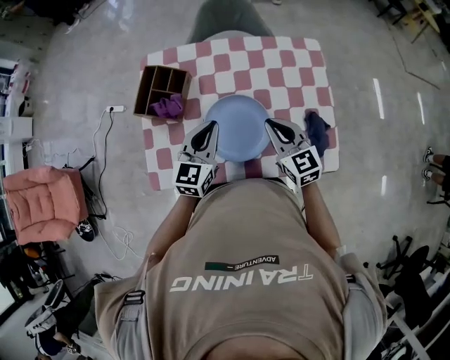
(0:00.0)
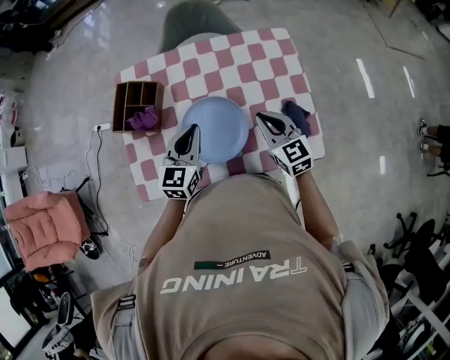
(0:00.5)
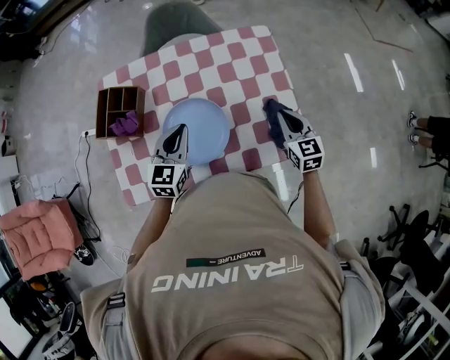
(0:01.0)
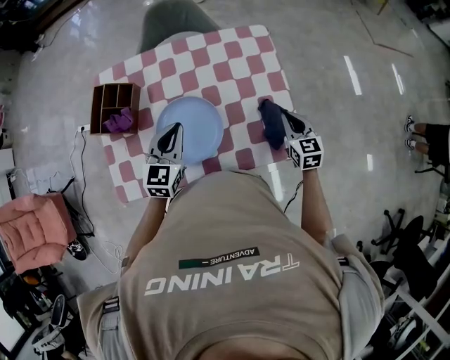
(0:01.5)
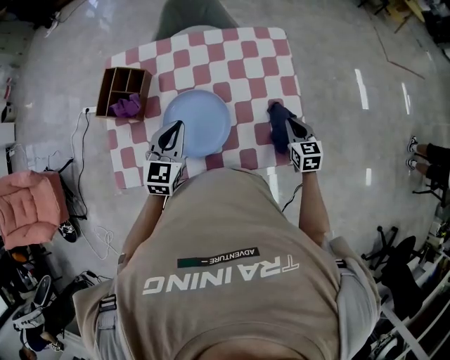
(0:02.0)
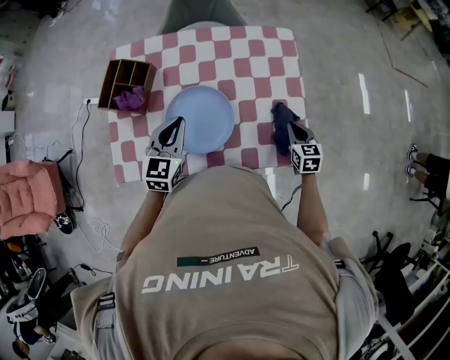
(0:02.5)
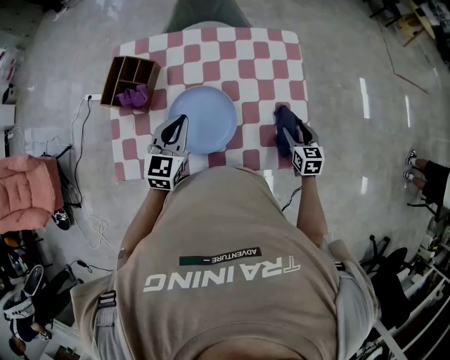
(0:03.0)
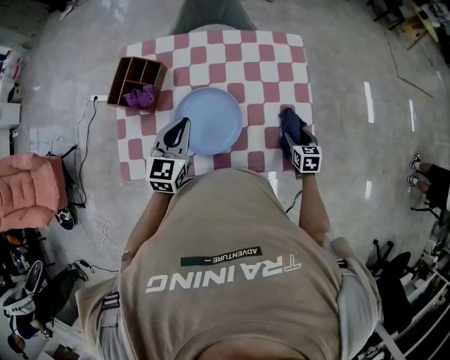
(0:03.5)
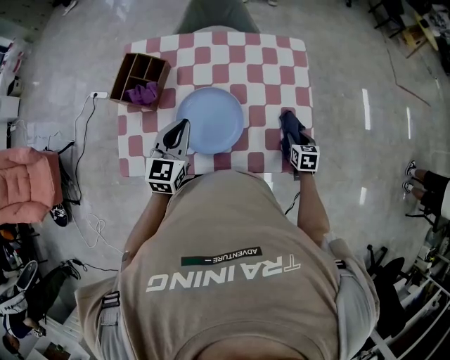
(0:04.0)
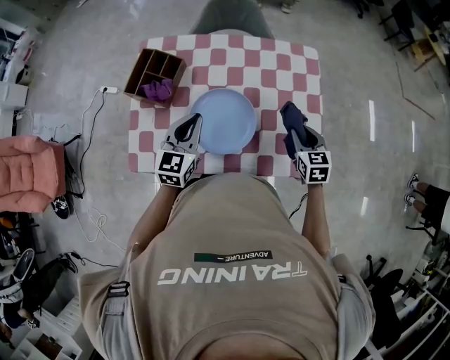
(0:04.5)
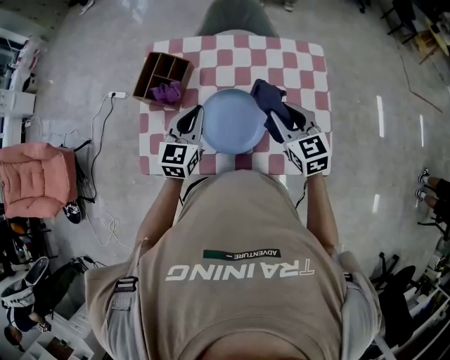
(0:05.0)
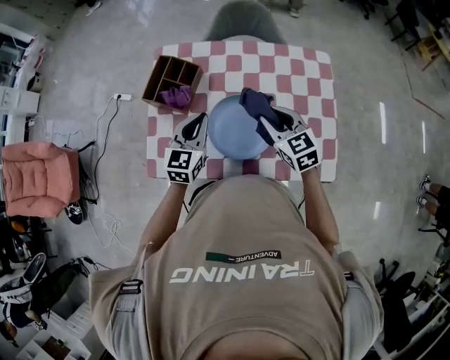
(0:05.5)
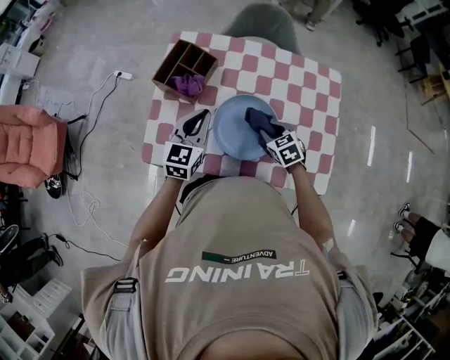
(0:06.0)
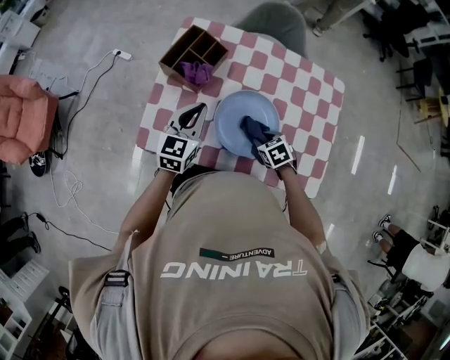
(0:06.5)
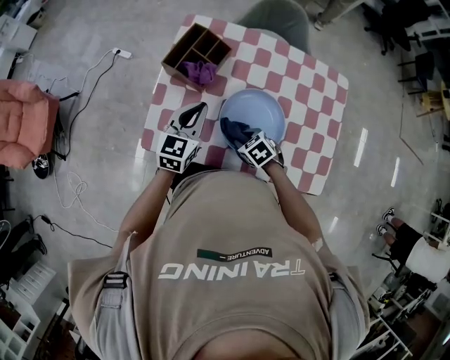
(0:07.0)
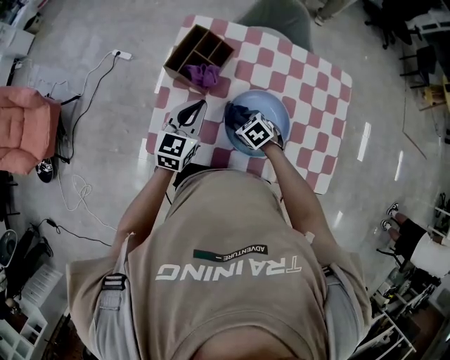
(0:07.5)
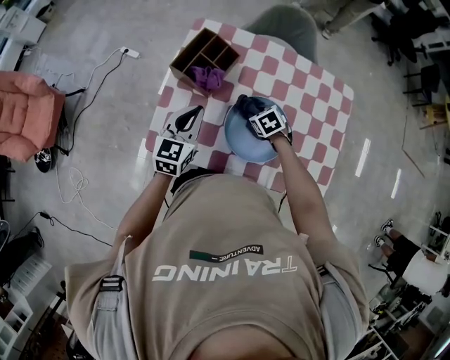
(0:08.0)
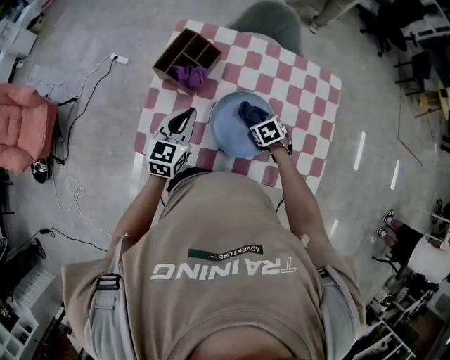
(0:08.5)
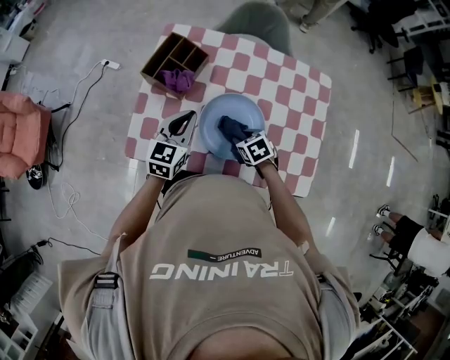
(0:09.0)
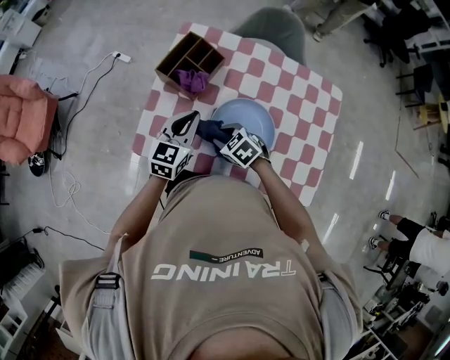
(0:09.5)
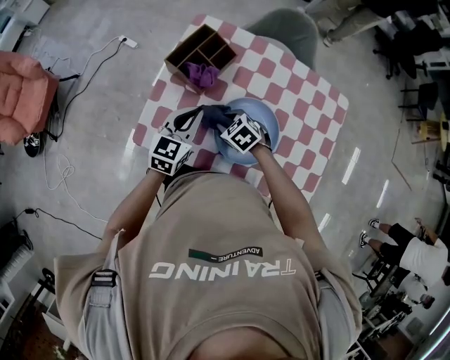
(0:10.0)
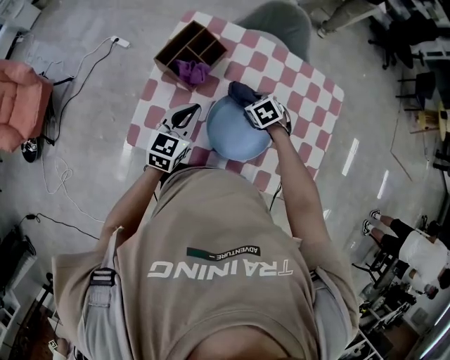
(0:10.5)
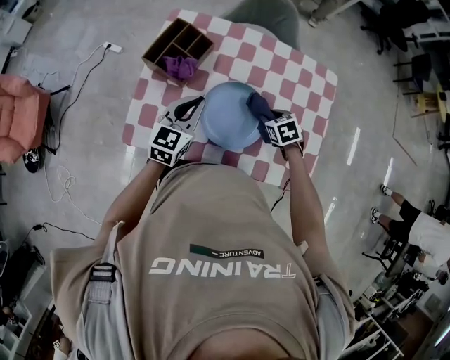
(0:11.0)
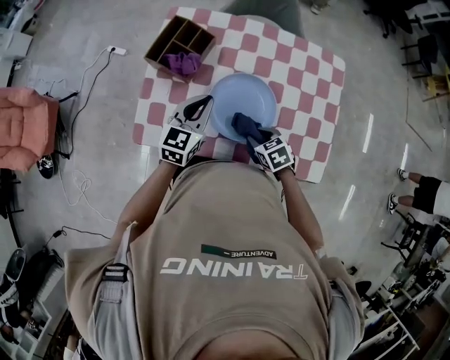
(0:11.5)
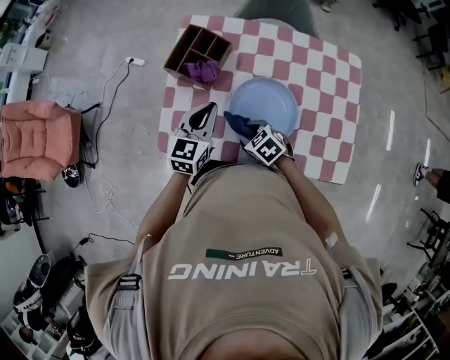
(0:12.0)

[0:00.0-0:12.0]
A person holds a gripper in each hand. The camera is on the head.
0:00.0 to 0:02.0: The right gripper goes about 25 cm to the right and downward, and rotates approximately 30 degrees, while the left gripper ends up approximately 5 cm from where it was.
0:02.0 to 0:04.0: The right gripper travels downward by some 5 cm, and opens.
0:04.0 to 0:06.0: The left gripper shifts some 10 cm to the left; the right gripper shifts roughly 25 cm to the left, and turns by some 40 degrees.
0:06.0 to 0:08.0: The right gripper shifts roughly 10 cm forward, to the left and downward; the left gripper goes about 5 cm to the left.
0:08.0 to 0:10.0: The right gripper goes approximately 10 cm to the left, and rotates approximately 20 degrees.
0:10.0 to 0:12.0: The right gripper is displaced backward by roughly 10 cm, and moves approximately 20 cm to the right and comes back.

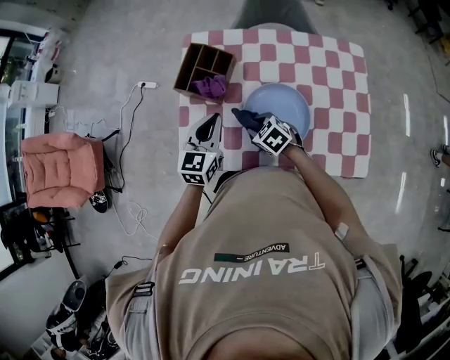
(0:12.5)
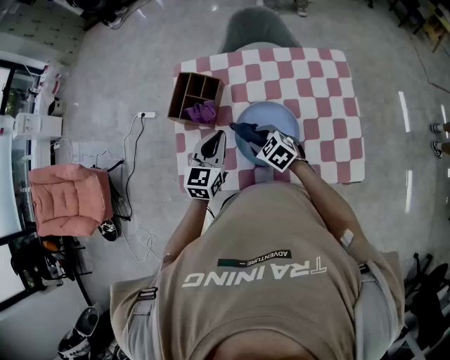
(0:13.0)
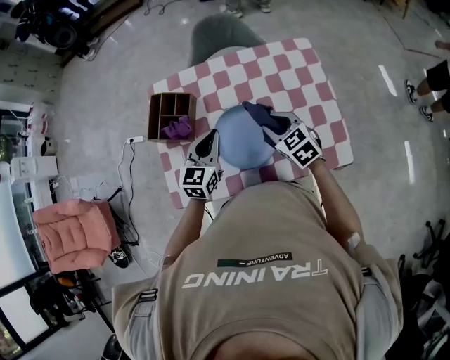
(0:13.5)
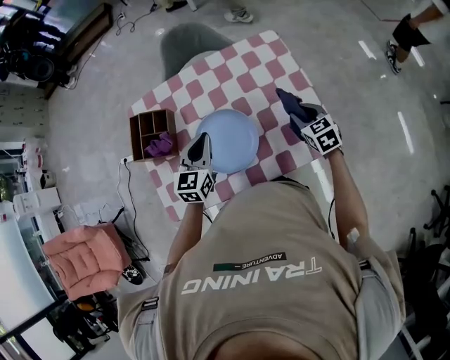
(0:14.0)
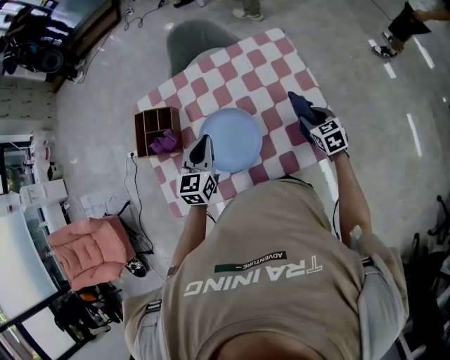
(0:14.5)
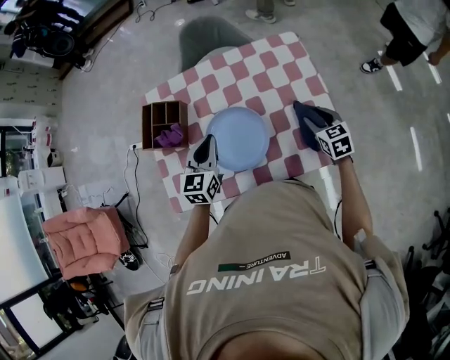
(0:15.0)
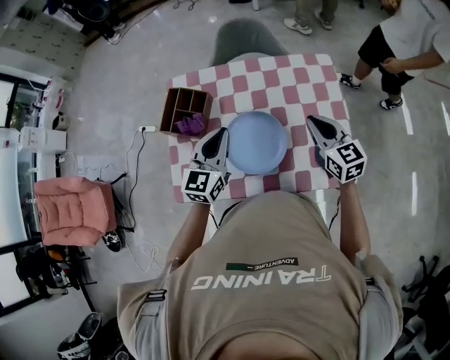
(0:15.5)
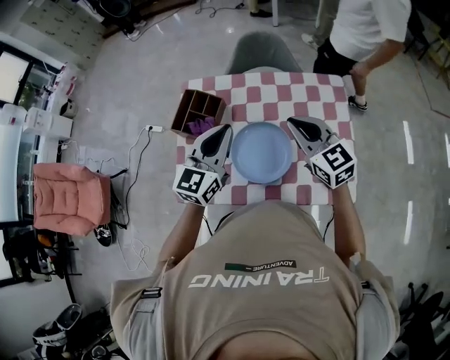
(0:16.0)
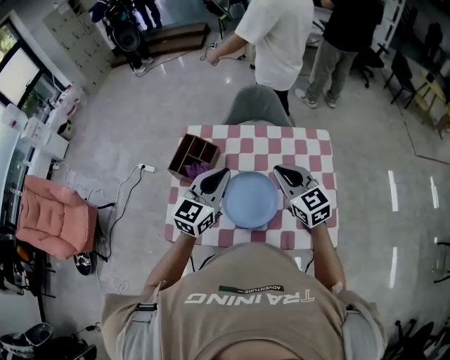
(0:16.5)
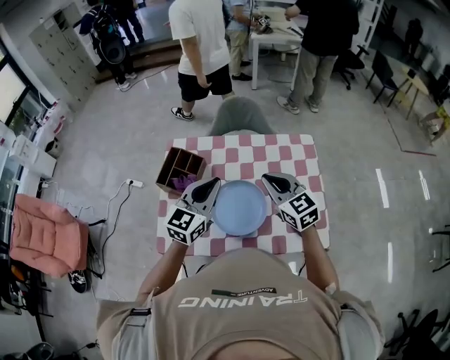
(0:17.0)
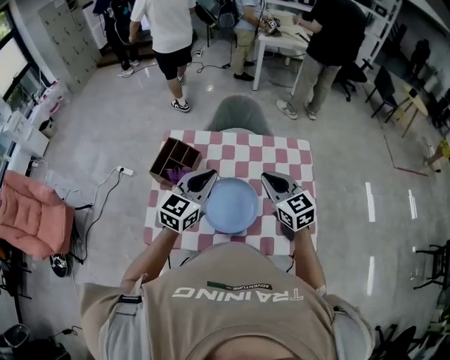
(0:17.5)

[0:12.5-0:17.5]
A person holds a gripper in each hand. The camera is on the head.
0:12.5 to 0:15.0: The right gripper shifts by roughly 40 cm, and swivels approximately 50 degrees. The left gripper ends up about 15 cm from where it was.
0:15.0 to 0:17.5: The right gripper heads to the left and upward, covering about 30 cm, swivels about 30 degrees, and closes up, while the left gripper heads upward, covering roughly 15 cm.

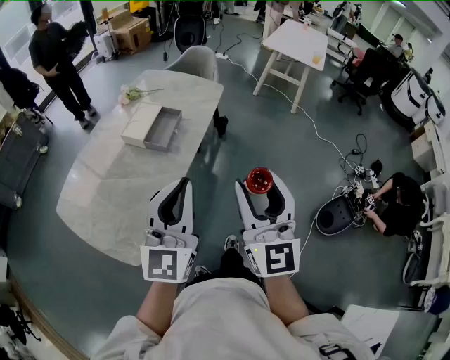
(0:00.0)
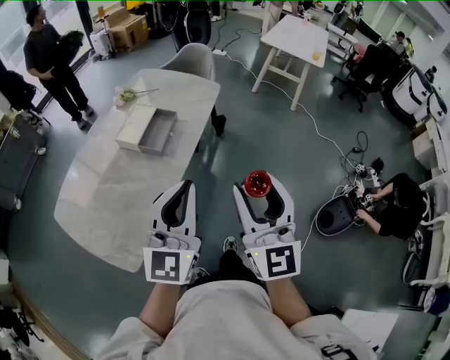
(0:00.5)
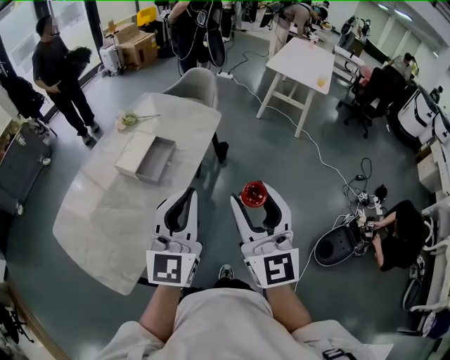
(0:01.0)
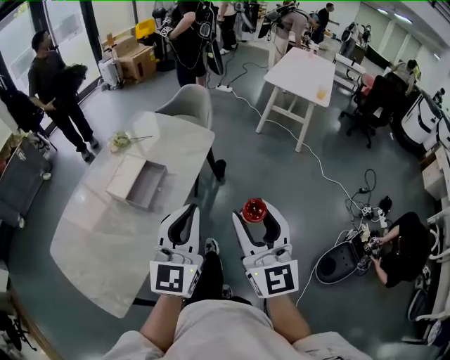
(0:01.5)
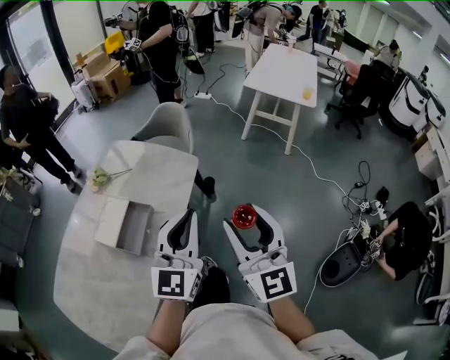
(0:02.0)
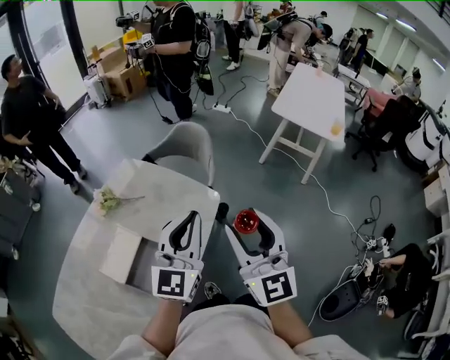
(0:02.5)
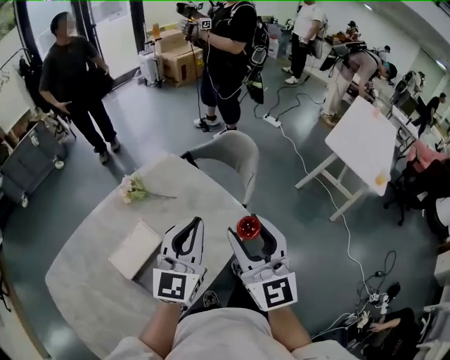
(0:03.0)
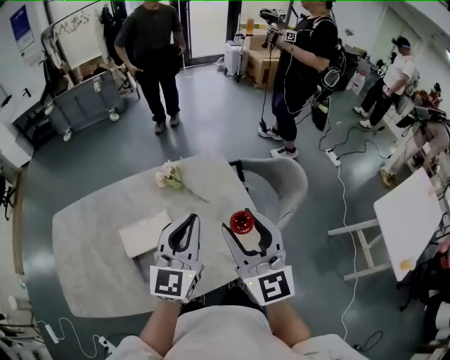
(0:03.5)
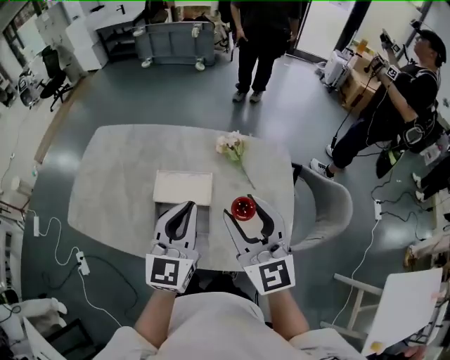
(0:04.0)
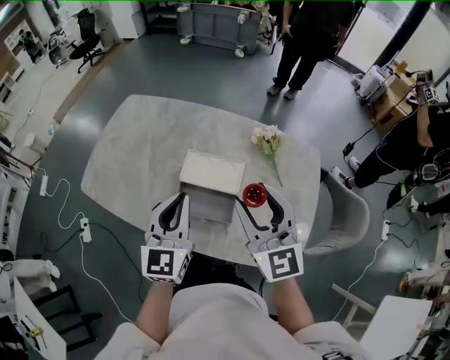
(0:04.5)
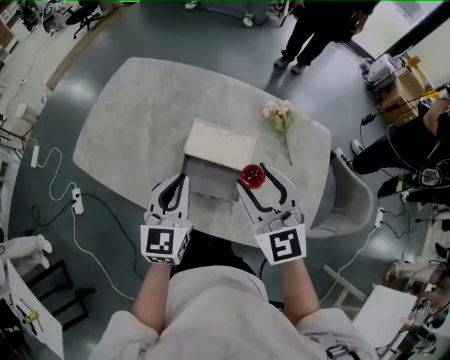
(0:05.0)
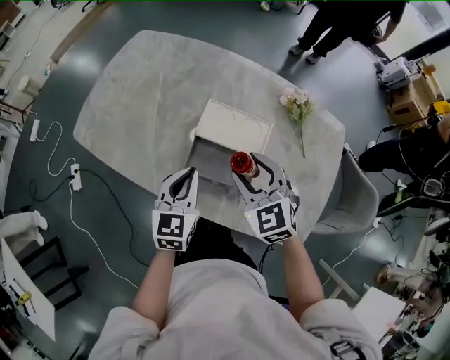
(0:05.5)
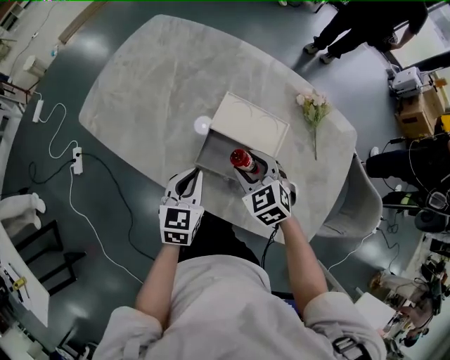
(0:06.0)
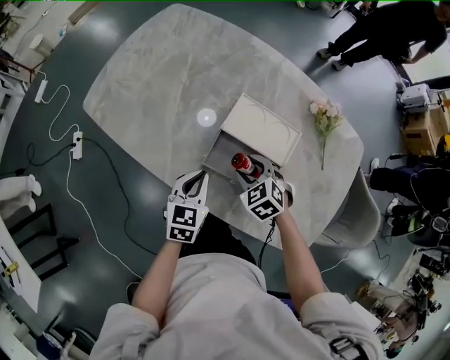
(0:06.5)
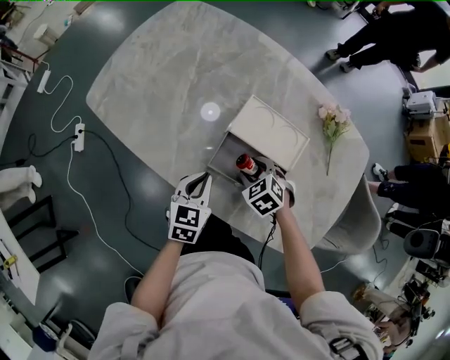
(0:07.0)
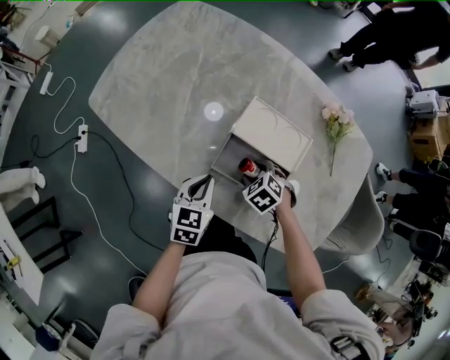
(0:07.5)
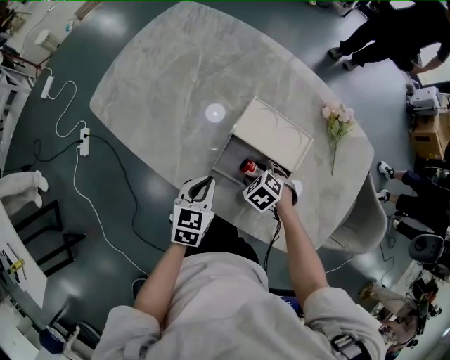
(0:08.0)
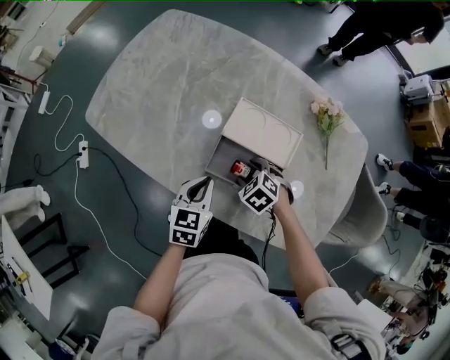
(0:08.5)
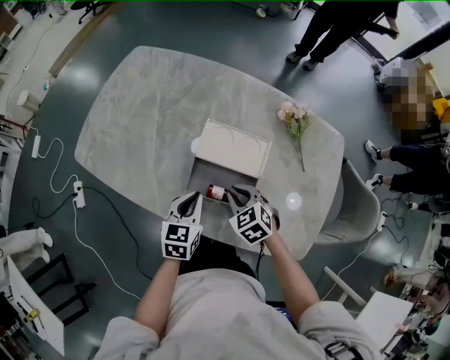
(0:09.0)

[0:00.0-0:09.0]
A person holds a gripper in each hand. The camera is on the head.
0:00.0 to 0:02.0: The two grippers go roughly 35 cm forward.
0:02.0 to 0:04.5: The left gripper moves approximately 30 cm, and swivels about 90 degrees. Meanwhile the right gripper changes place by approximately 40 cm, and swivels about 90 degrees.
0:04.5 to 0:07.0: Both grippers move downward, roughly 35 cm. The right gripper tilts its fingers some 70 degrees downward. Meanwhile the left gripper angles its fingers downward, by some 30 degrees.
0:07.0 to 0:09.0: The right gripper shifts about 5 cm upward, and closes up. Meanwhile the left gripper ends up approximately 5 cm from where it was.

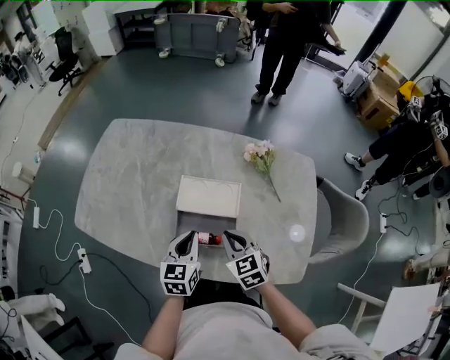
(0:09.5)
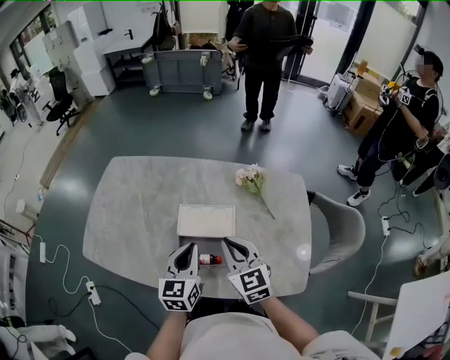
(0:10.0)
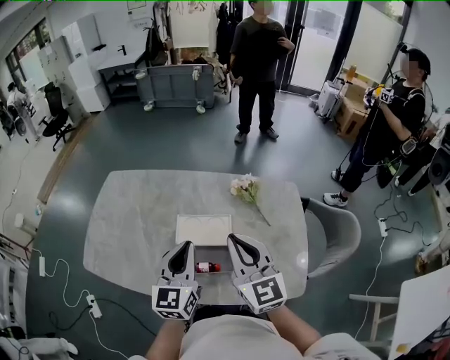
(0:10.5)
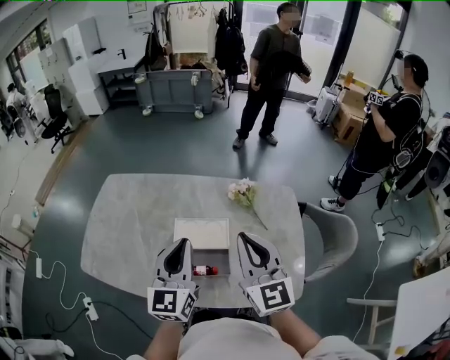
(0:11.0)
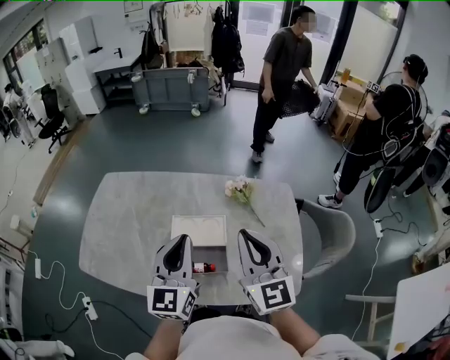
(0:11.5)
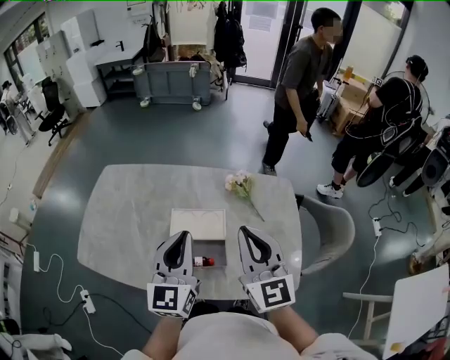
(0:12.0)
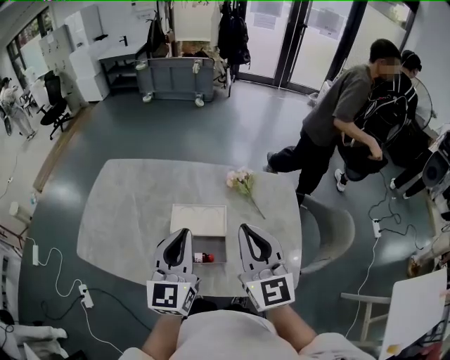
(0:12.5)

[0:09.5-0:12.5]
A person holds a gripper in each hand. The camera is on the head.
0:09.5 to 0:11.0: The grippers both shift upward by about 25 cm. The left gripper turns by approximately 30 degrees; the right gripper angles its fingers upward, by about 40 degrees.
0:11.0 to 0:12.5: The grippers move only a little.